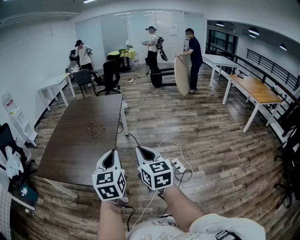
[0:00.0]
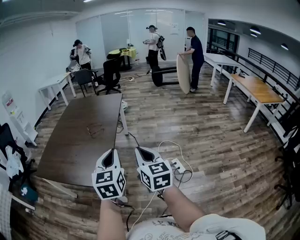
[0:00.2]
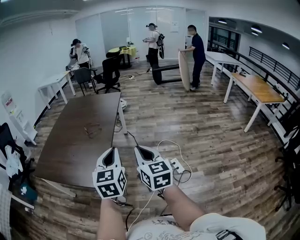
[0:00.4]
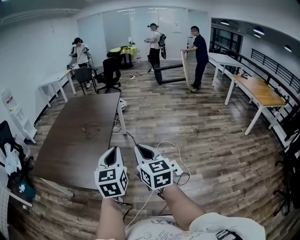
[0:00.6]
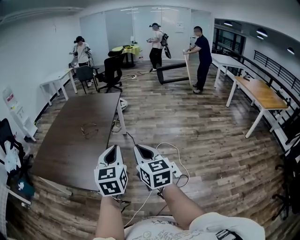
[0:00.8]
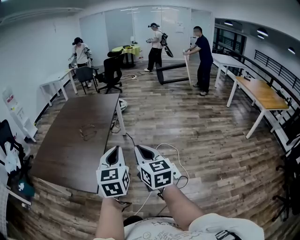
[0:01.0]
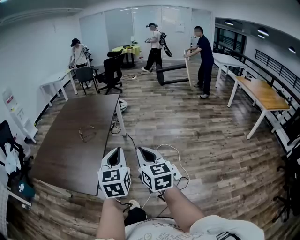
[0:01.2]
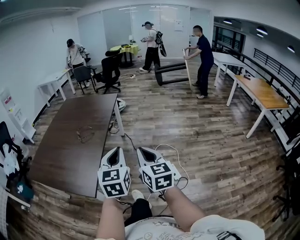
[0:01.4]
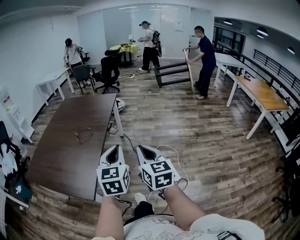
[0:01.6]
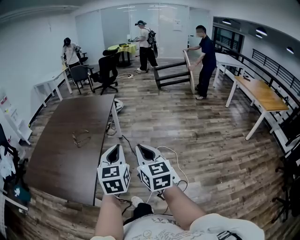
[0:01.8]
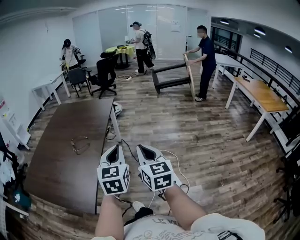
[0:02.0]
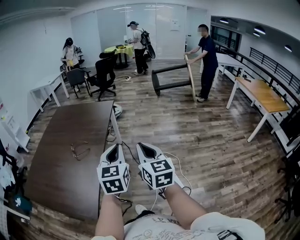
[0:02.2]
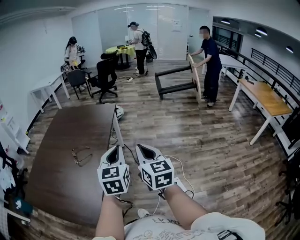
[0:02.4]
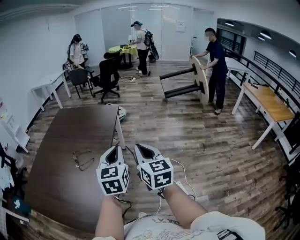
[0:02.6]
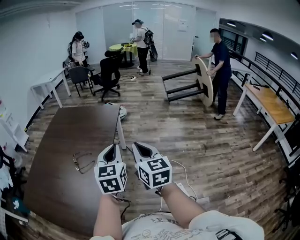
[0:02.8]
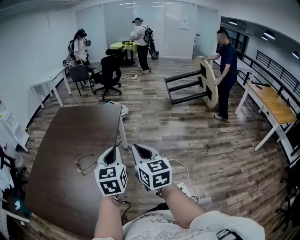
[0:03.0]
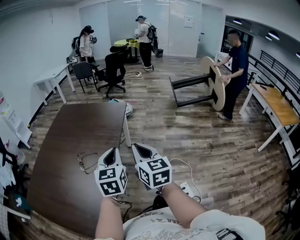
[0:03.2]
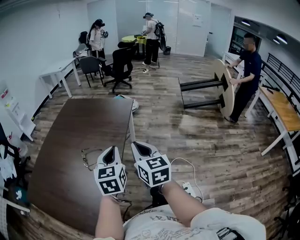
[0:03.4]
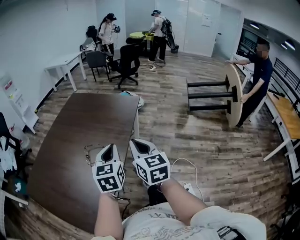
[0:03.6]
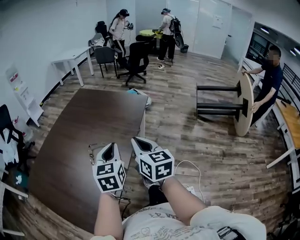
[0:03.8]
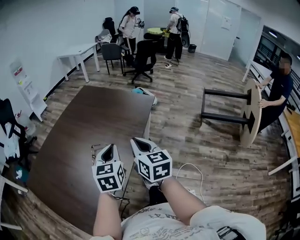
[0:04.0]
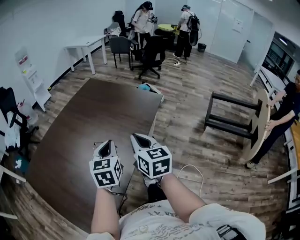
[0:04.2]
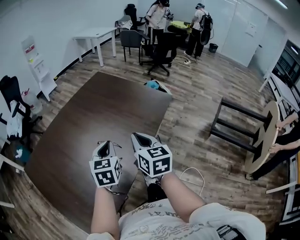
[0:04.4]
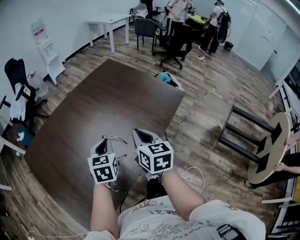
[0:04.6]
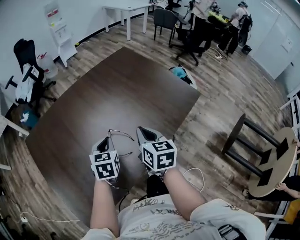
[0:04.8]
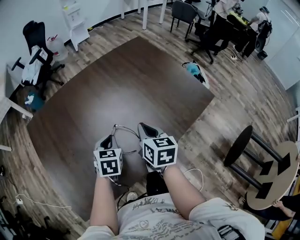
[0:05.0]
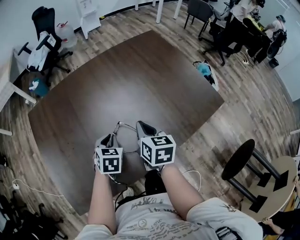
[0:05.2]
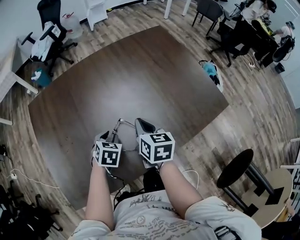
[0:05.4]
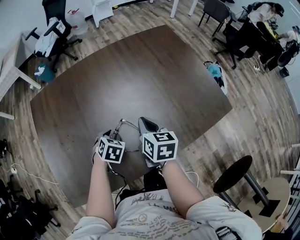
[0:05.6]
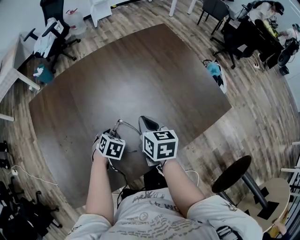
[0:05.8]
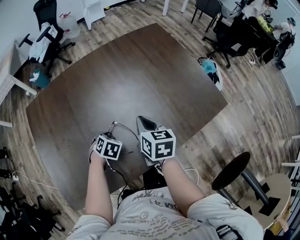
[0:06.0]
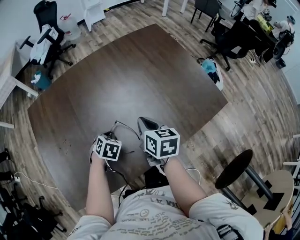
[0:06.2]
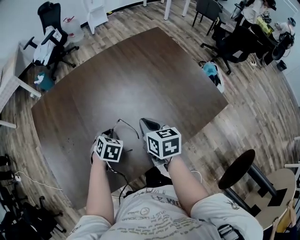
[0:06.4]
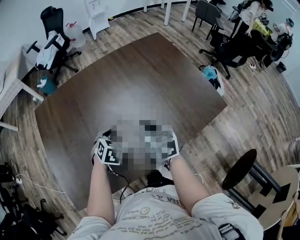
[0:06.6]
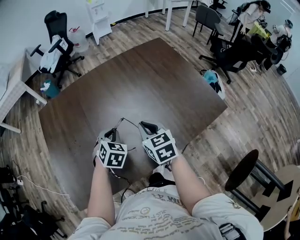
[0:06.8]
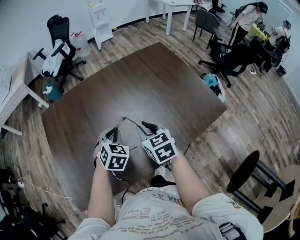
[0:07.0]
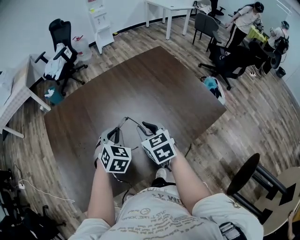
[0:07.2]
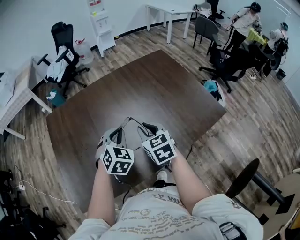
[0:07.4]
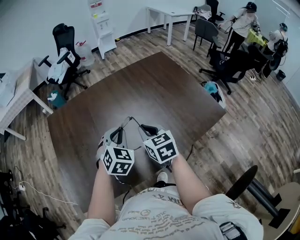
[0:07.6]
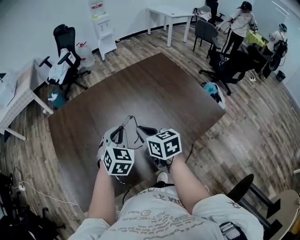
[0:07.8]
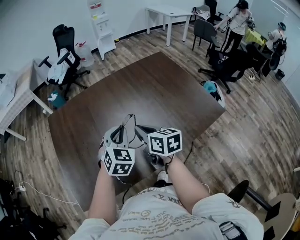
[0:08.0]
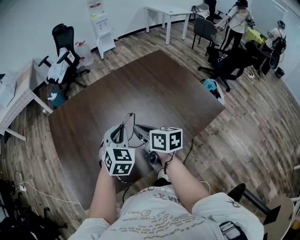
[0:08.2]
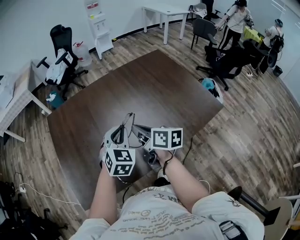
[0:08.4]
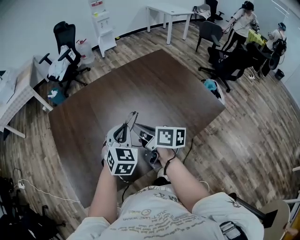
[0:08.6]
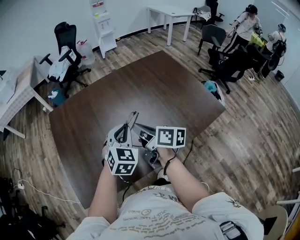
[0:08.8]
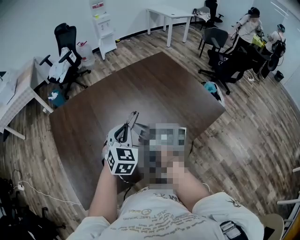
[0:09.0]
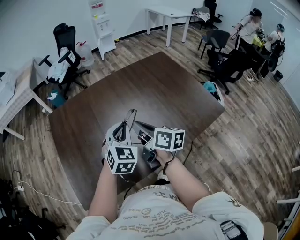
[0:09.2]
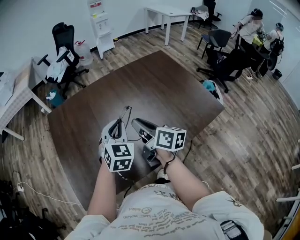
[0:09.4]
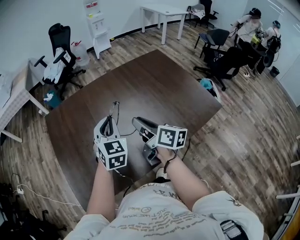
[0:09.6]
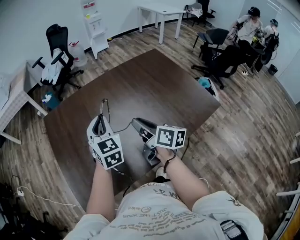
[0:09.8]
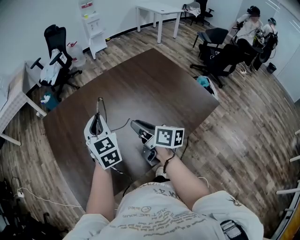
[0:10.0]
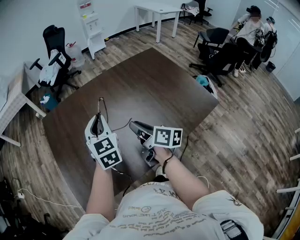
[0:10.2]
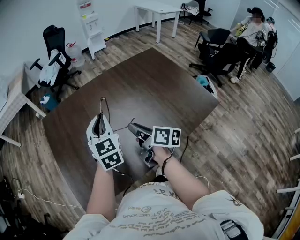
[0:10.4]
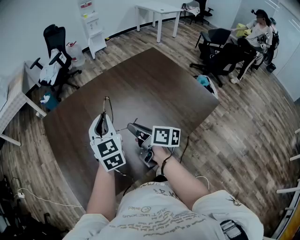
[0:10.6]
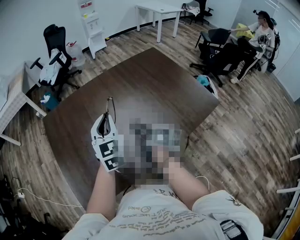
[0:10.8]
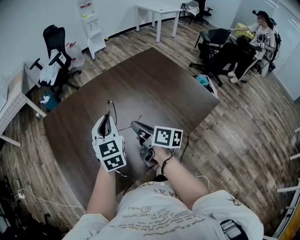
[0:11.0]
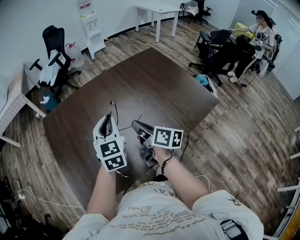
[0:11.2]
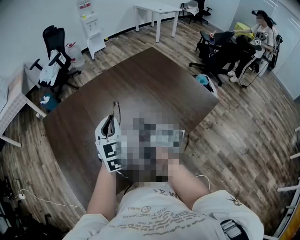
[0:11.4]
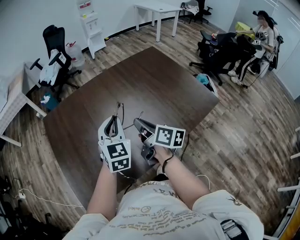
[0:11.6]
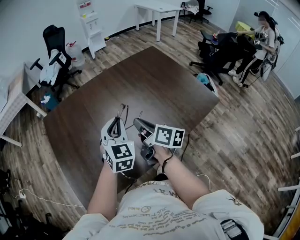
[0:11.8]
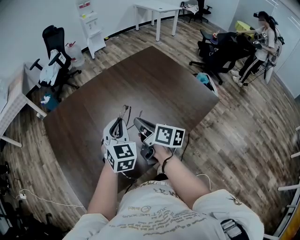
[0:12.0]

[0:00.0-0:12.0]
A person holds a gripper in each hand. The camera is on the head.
0:00.0 to 0:01.6: Both grippers travel together to the right and forward, roughly 20 cm.
0:01.6 to 0:03.0: Both grippers travel together forward, roughly 30 cm.
0:03.0 to 0:04.4: The left gripper changes place by some 30 cm, and turns by roughly 30 degrees. The right gripper ends up roughly 30 cm from where it was, and turns by approximately 30 degrees.
0:04.4 to 0:06.0: The left gripper travels downward by roughly 25 cm, and angles its fingers downward, by approximately 50 degrees. The right gripper shifts by roughly 25 cm, and rotates some 30 degrees.
0:06.0 to 0:07.6: The right gripper shifts roughly 10 cm upward, to the left and backward, and swivels some 20 degrees, while the left gripper travels upward by approximately 25 cm, and tilts its fingers roughly 40 degrees upward.
0:07.6 to 0:09.0: The right gripper changes place by approximately 5 cm, and rolls clockwise, seen from behind, by roughly 50 degrees.
0:09.0 to 0:10.4: The left gripper heads to the left, forward and upward, covering about 10 cm, and swivels approximately 30 degrees, while the right gripper opens up.
0:10.4 to 0:12.0: The left gripper travels to the right by approximately 5 cm, and changes its angle by approximately 20 degrees; the right gripper closes its fingers.

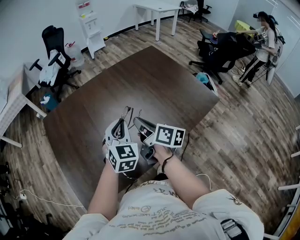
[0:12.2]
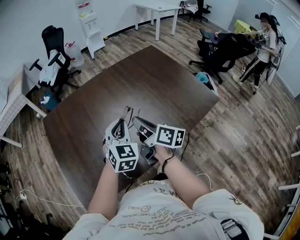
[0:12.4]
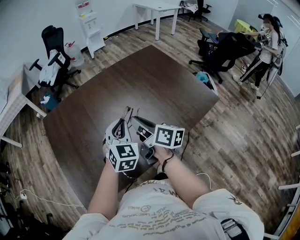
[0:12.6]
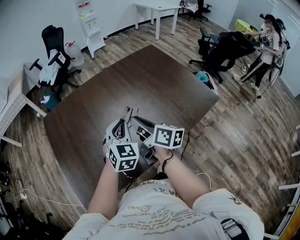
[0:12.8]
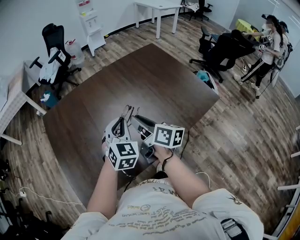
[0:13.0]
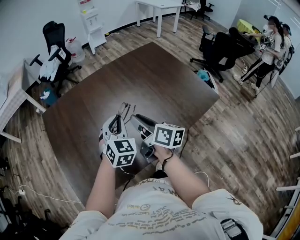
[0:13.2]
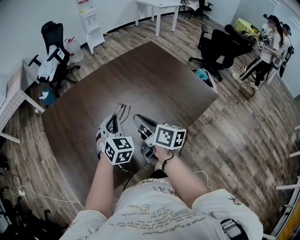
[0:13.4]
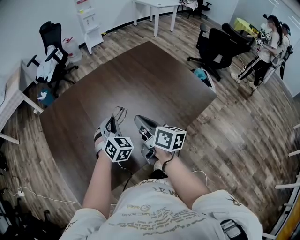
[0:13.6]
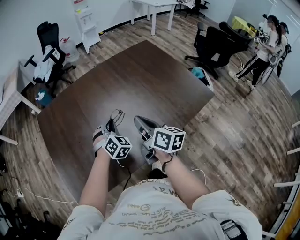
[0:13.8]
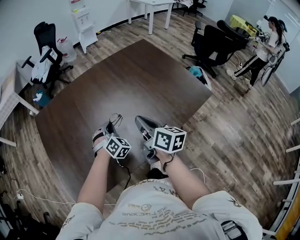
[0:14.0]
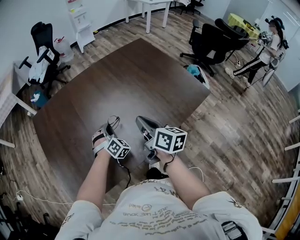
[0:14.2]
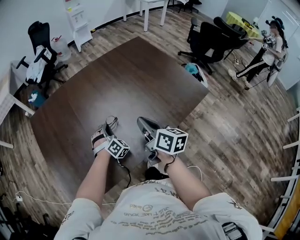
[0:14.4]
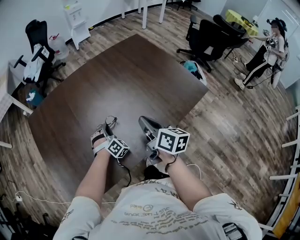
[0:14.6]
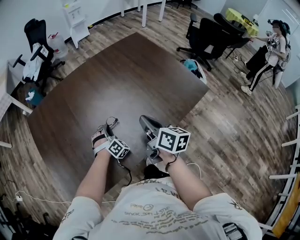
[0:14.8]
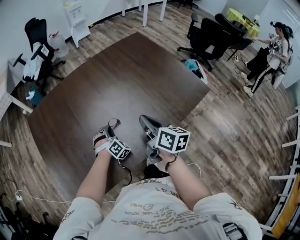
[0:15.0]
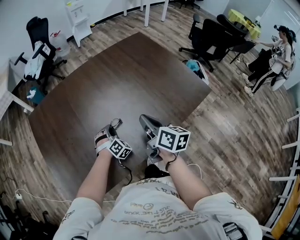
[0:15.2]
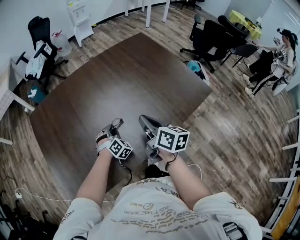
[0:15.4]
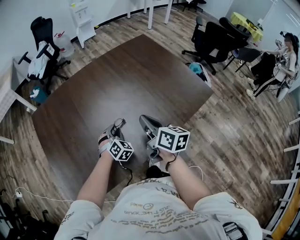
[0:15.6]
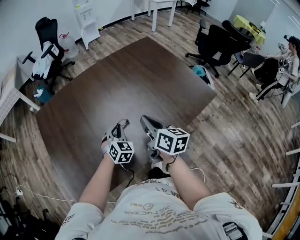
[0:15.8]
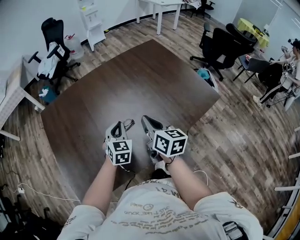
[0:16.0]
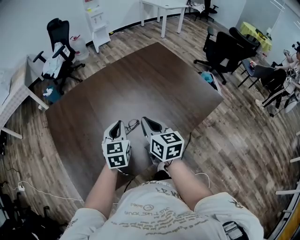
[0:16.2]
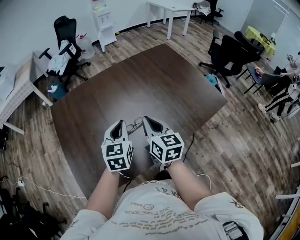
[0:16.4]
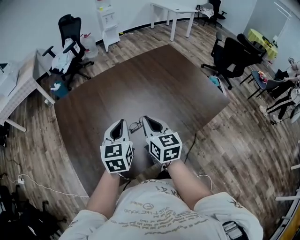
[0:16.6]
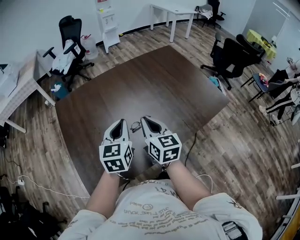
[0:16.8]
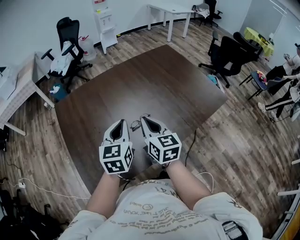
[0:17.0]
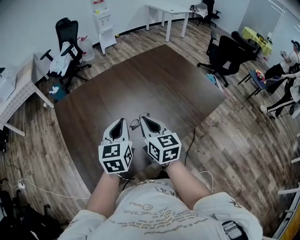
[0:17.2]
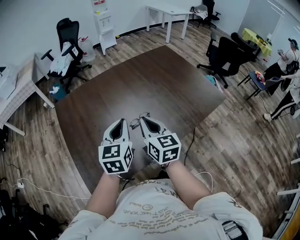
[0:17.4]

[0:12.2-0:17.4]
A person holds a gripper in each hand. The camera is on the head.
0:12.2 to 0:14.0: The right gripper opens, then closes again. The left gripper moves downward, about 15 cm, and changes its angle by some 30 degrees.
0:14.0 to 0:15.6: The left gripper moves downward, about 5 cm, and opens up.
0:15.6 to 0:17.4: The right gripper is displaced to the left and backward by some 15 cm, and turns by some 30 degrees; the left gripper moves upward and backward, some 30 cm, rotates around the line of its fingers by some 50 degrees, counterclockwise from behind, and closes its fingers.

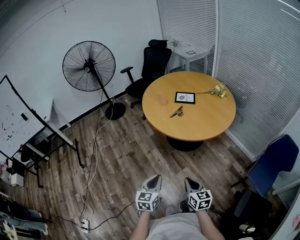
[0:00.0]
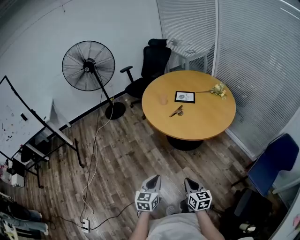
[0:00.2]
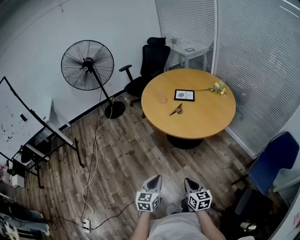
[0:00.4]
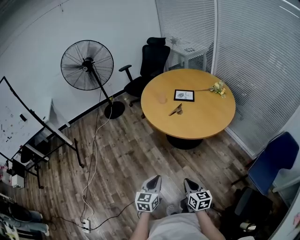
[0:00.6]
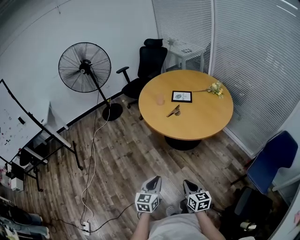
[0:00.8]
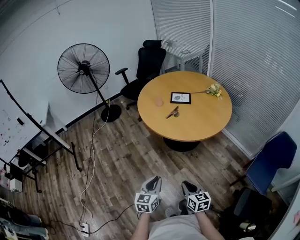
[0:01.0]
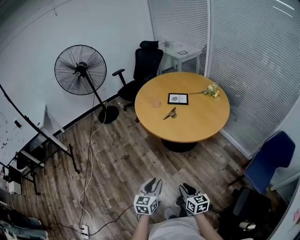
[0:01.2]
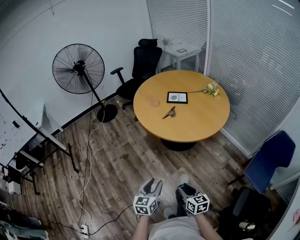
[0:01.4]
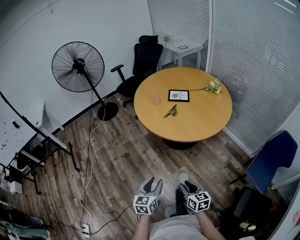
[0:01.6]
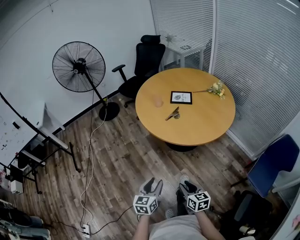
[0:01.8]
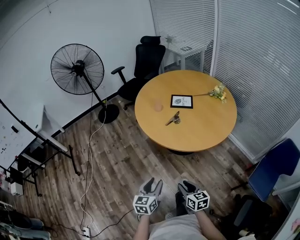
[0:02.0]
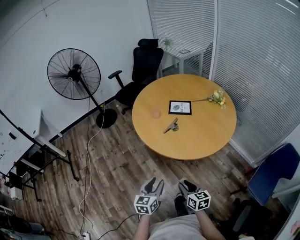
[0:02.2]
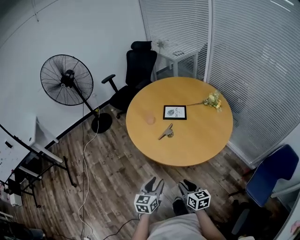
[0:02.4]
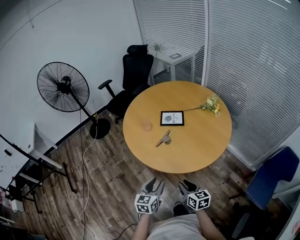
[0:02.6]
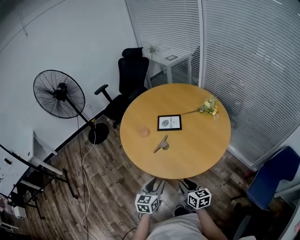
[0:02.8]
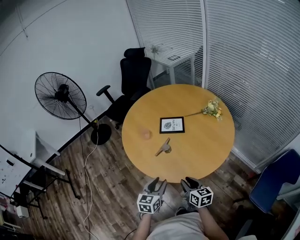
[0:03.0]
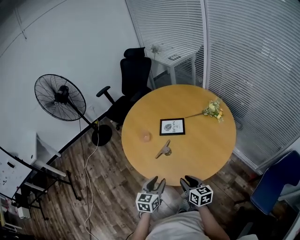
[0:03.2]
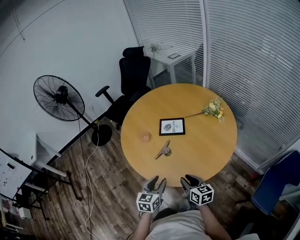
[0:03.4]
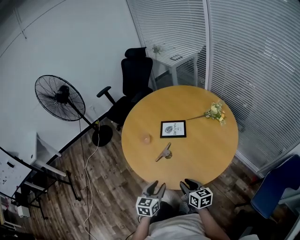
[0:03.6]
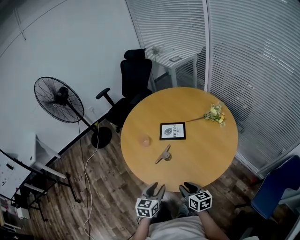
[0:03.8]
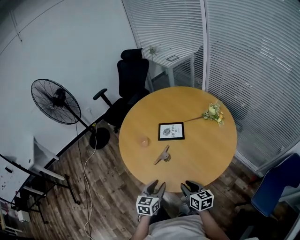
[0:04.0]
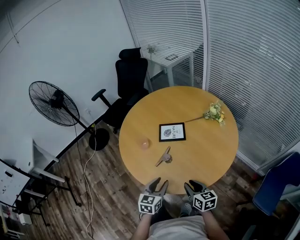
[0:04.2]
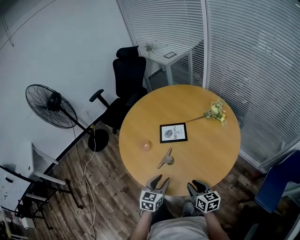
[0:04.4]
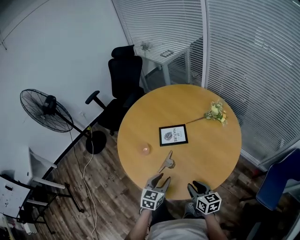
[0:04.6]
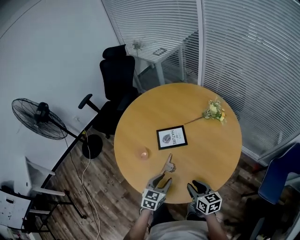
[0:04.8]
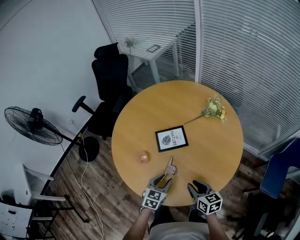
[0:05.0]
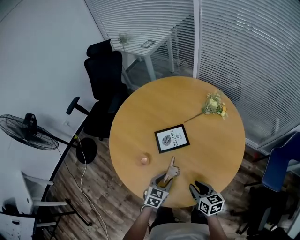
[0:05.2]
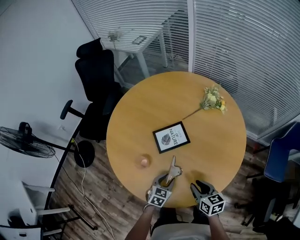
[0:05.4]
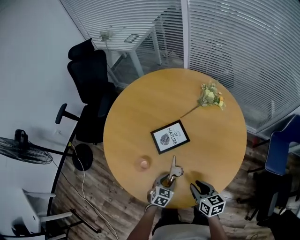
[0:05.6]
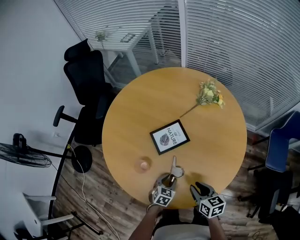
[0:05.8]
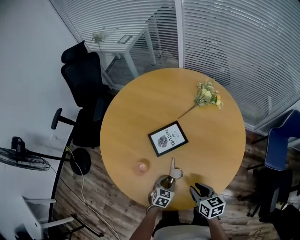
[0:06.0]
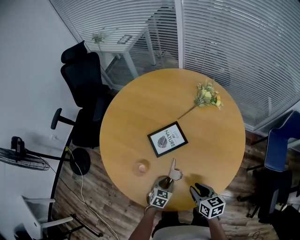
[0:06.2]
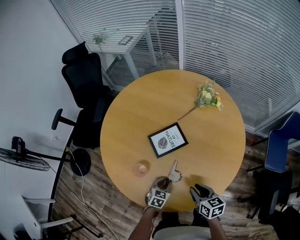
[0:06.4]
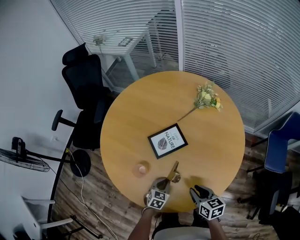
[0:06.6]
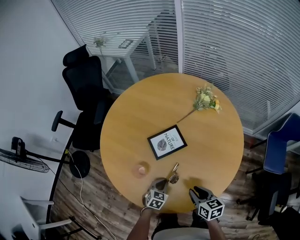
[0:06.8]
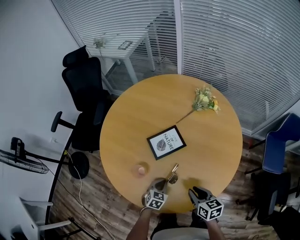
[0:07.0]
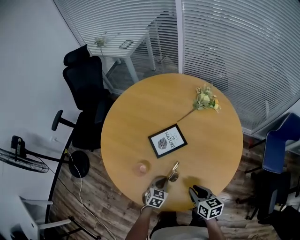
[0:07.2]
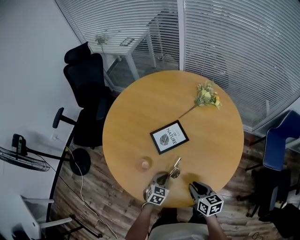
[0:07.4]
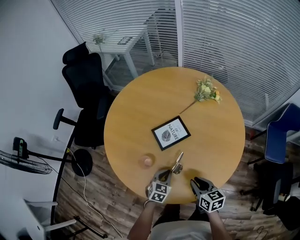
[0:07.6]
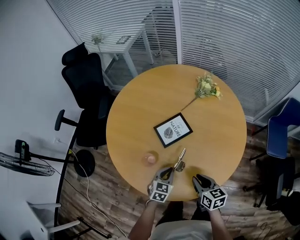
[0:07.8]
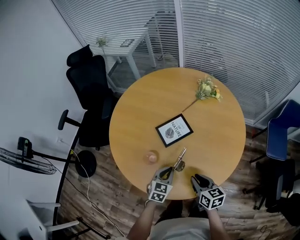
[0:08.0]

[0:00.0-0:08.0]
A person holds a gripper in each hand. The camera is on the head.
0:00.0 to 0:01.6: The right gripper moves some 5 cm, and opens. Meanwhile the left gripper opens.
0:01.6 to 0:03.2: The two grippers go roughly 35 cm forward.
0:03.2 to 0:04.8: The two grippers go approximately 15 cm forward. The left gripper rotates roughly 20 degrees.
0:04.8 to 0:06.4: The left gripper goes roughly 20 cm downward, and swivels about 30 degrees, while the right gripper moves downward and to the left, about 10 cm.
0:06.4 to 0:08.0: The left gripper shifts about 10 cm upward, and closes its fingers; the right gripper moves to the left, about 5 cm.
